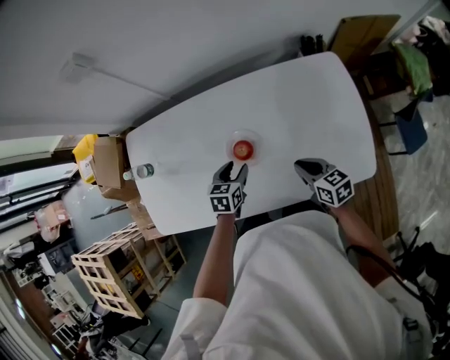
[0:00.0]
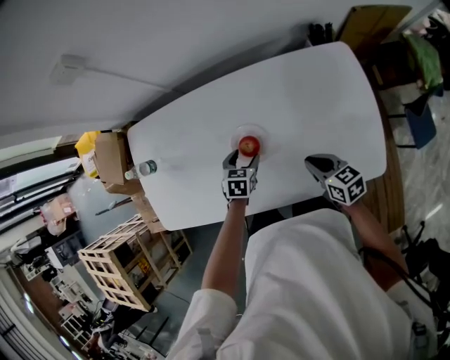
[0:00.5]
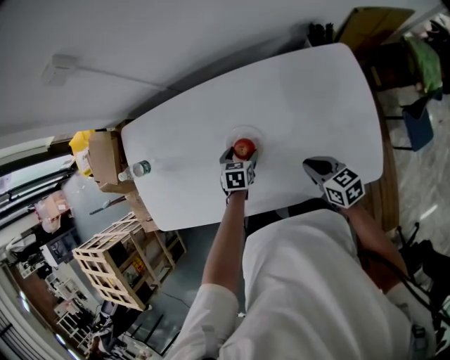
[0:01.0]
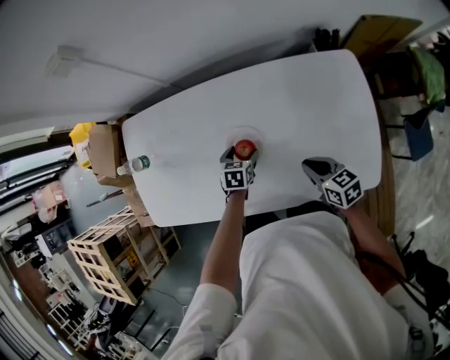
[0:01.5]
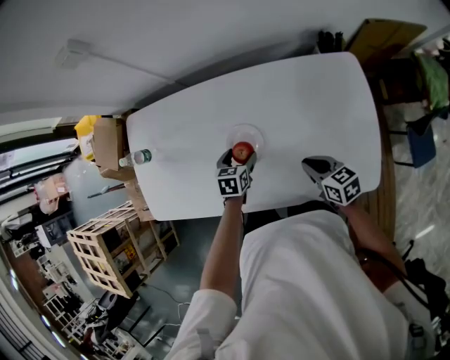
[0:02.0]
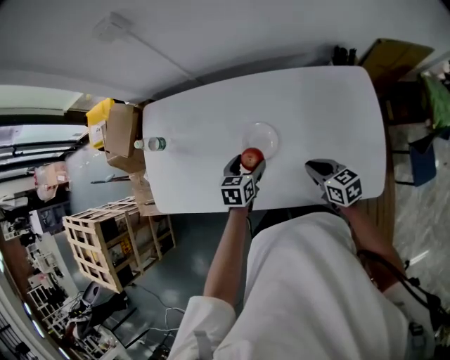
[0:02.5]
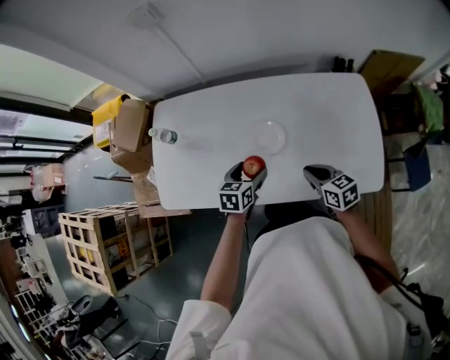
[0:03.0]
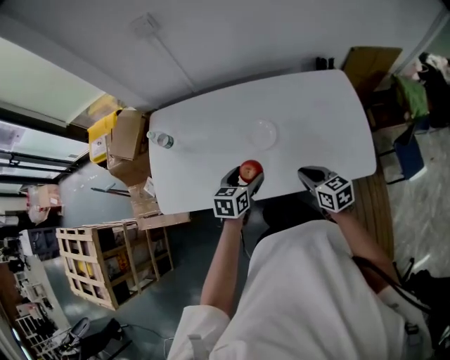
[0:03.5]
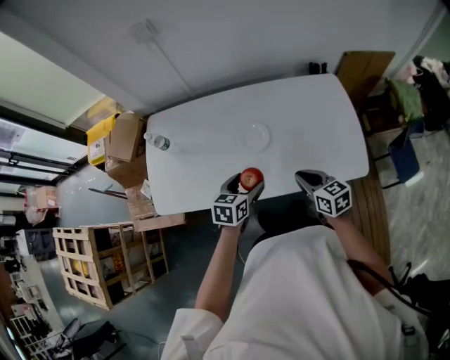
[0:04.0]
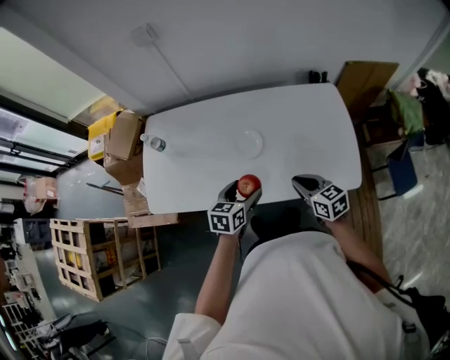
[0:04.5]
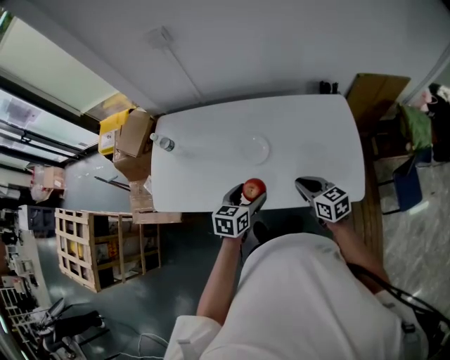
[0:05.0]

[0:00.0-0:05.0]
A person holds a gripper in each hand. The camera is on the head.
0:00.0 to 0:02.5: The left gripper reaches roughly 10 cm downward, then returns, and opens.
0:02.5 to 0:05.0: The left gripper is displaced backward and upward by some 20 cm; the right gripper is displaced upward and backward by approximately 10 cm.

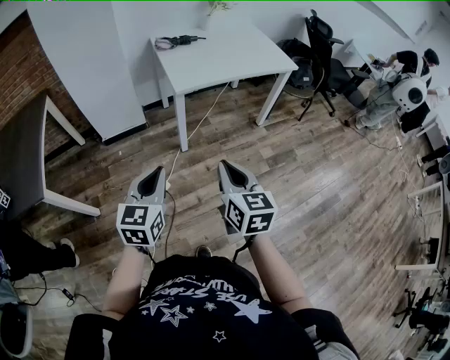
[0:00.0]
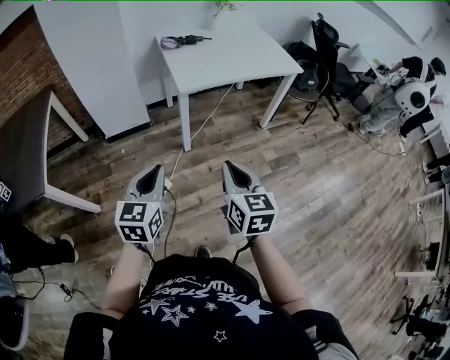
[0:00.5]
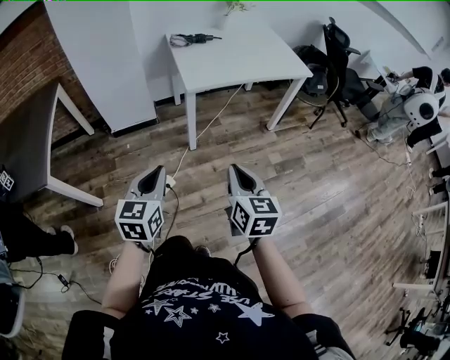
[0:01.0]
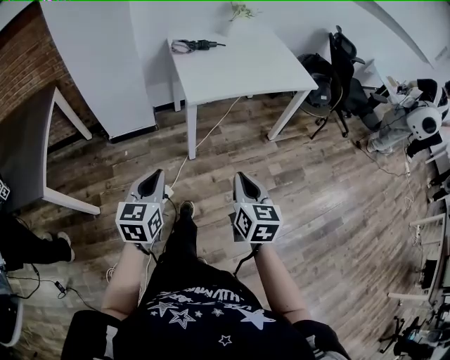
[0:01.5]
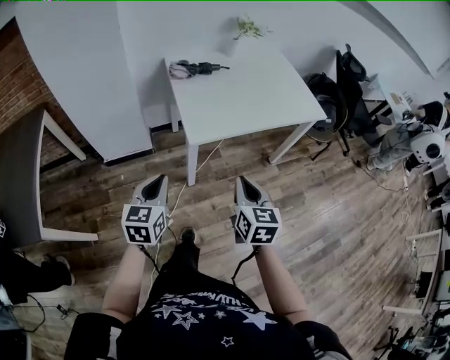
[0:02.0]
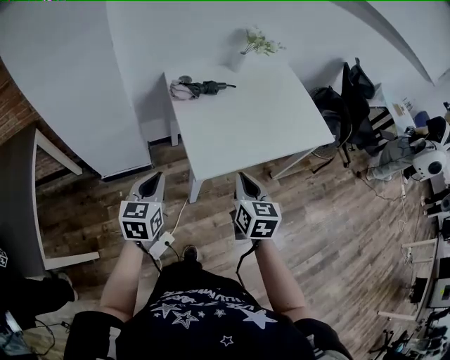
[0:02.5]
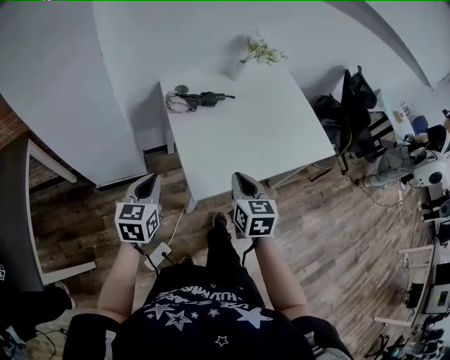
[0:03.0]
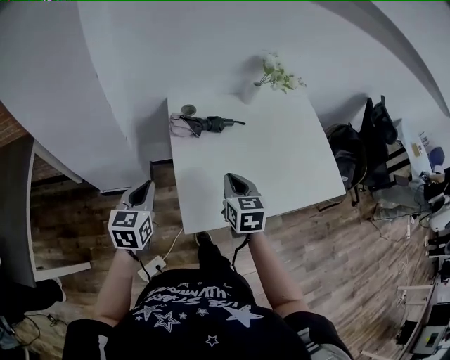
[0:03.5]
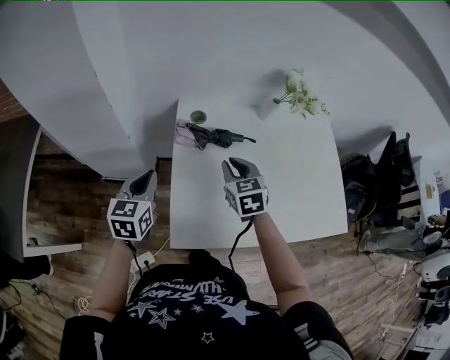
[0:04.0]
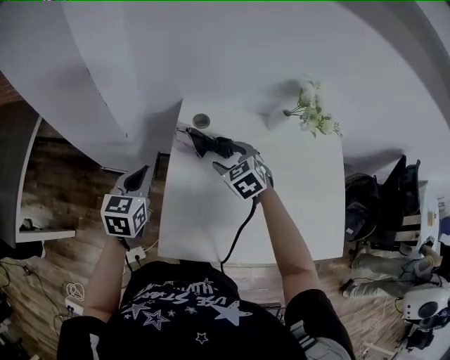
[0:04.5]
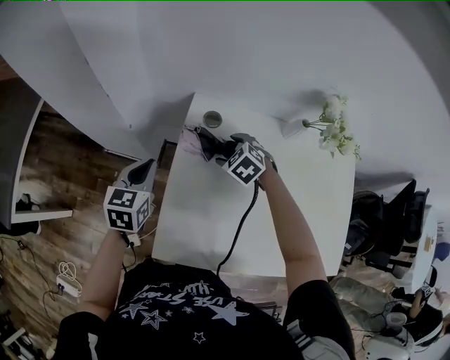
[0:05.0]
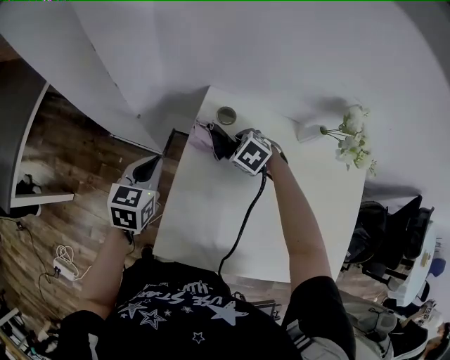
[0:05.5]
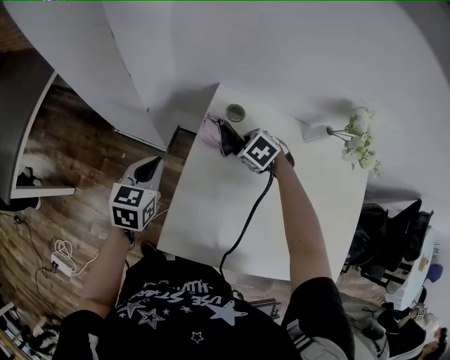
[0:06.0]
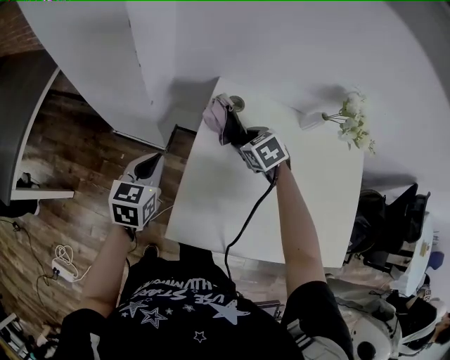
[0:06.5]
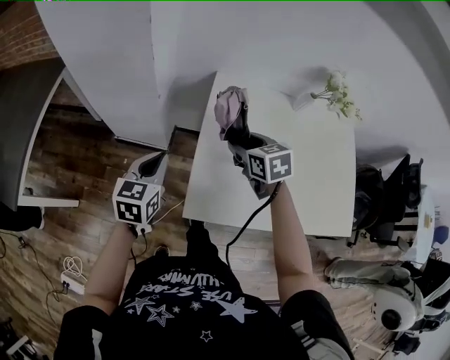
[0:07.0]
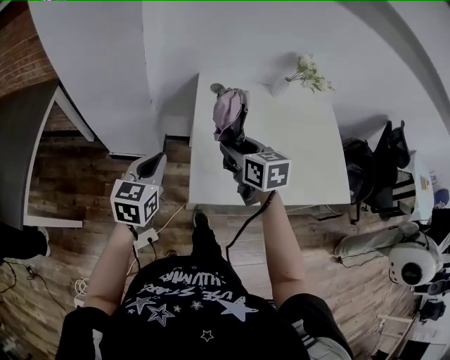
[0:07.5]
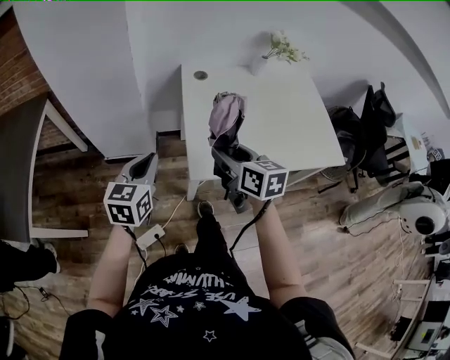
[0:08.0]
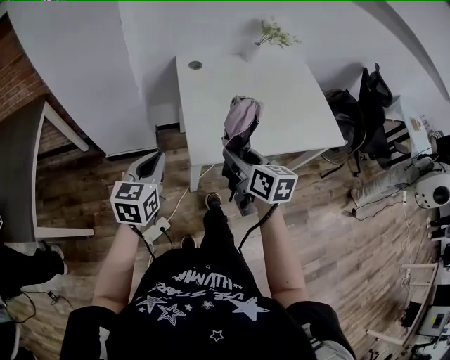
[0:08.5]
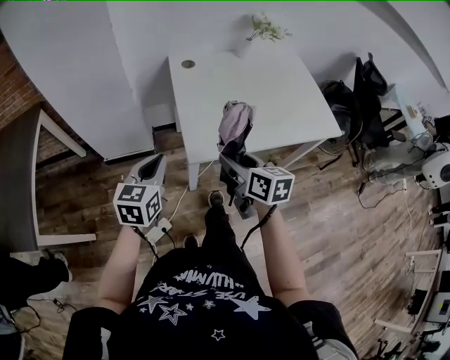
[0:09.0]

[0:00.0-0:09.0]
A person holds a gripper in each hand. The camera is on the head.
0:00.0 to 0:02.0: The grippers both shift forward by some 25 cm.
0:02.0 to 0:04.5: Both grippers are carried some 50 cm. The right gripper swivels about 70 degrees, and opens its fingers; the left gripper changes its angle by roughly 20 degrees.
0:04.5 to 0:07.0: The grippers both shift to the left and backward by about 10 cm. The right gripper goes downward and returns, roughly 10 cm each way, and turns by roughly 30 degrees.
0:07.0 to 0:09.0: The right gripper travels backward by about 30 cm, and rotates about 40 degrees, while the left gripper goes about 20 cm backward, and turns by approximately 20 degrees.

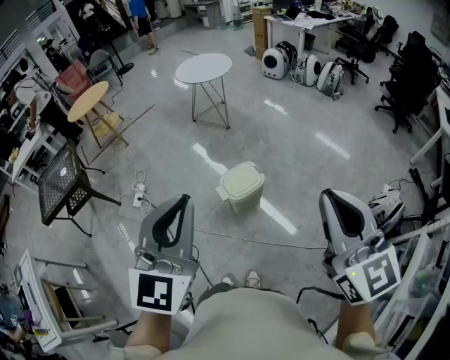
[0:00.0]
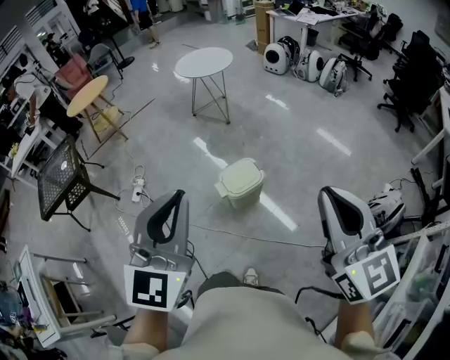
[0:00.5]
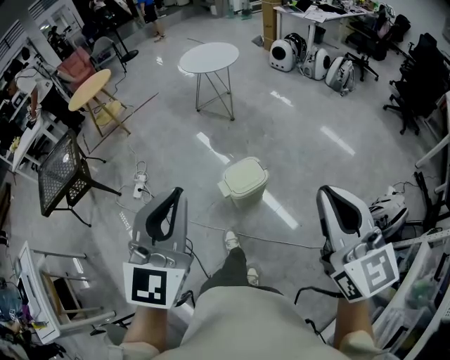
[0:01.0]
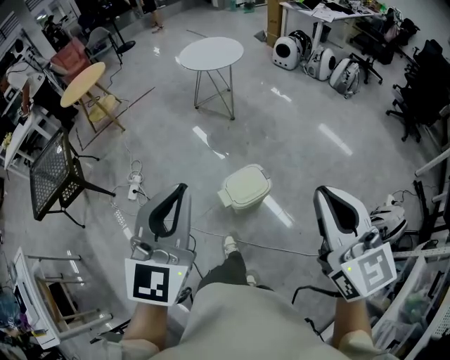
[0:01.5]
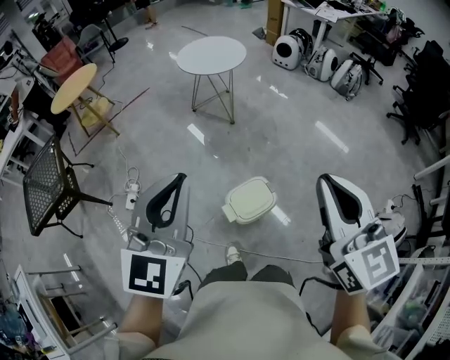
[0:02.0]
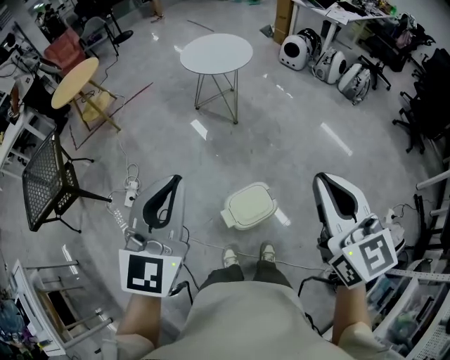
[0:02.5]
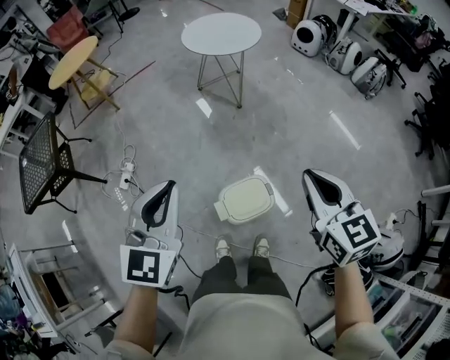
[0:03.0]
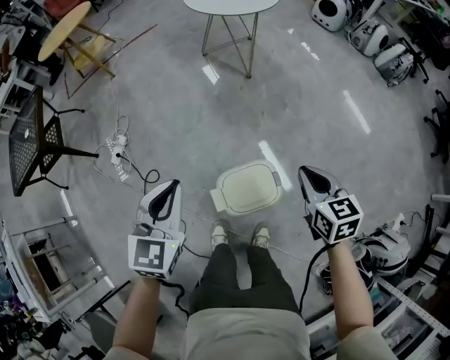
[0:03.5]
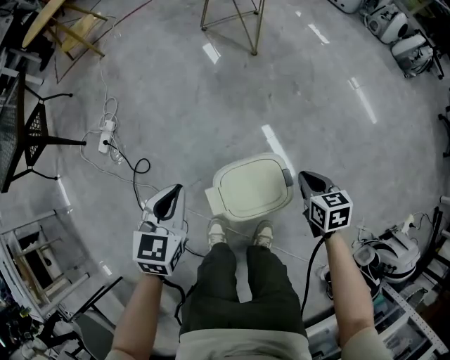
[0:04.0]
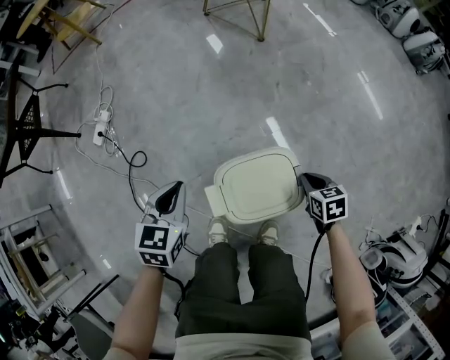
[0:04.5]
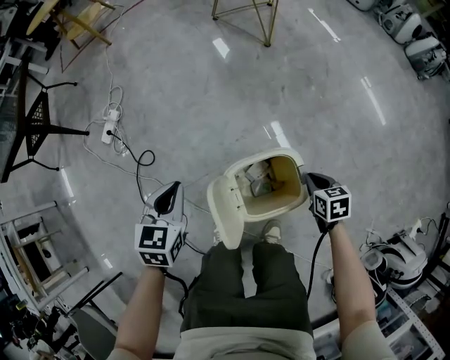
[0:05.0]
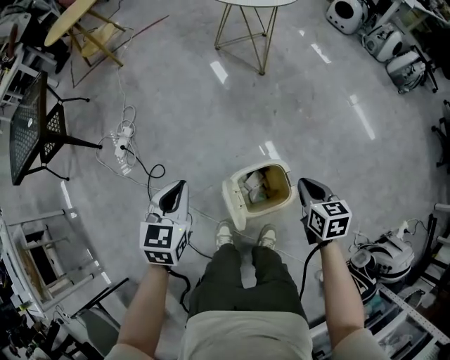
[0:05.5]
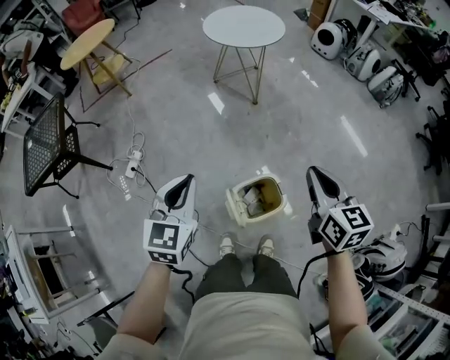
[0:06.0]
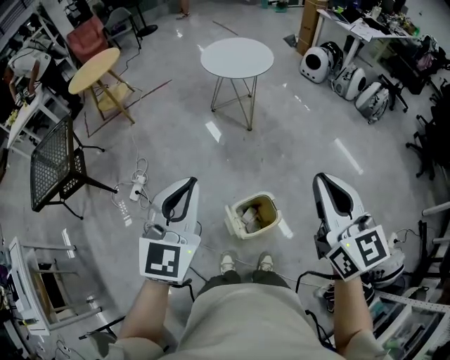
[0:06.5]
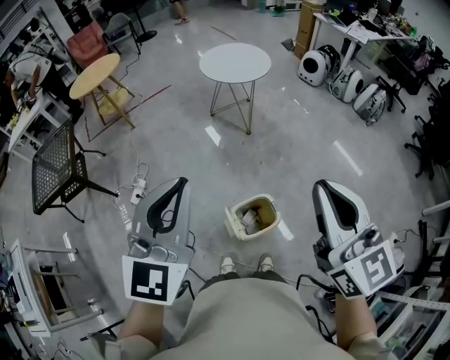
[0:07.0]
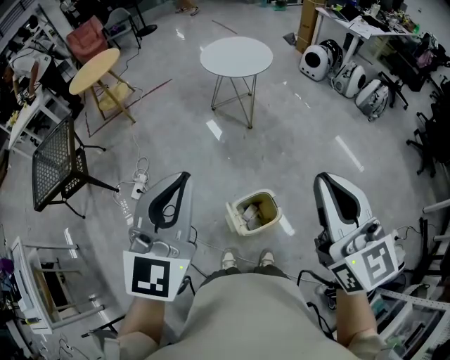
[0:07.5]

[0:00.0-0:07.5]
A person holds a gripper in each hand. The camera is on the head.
0:00.0 to 0:02.0: Both grippers travel together forward, some 30 cm.
0:02.0 to 0:04.0: Both grippers move downward, some 60 cm. The left gripper tips its fingers downward by about 30 degrees. Meanwhile the right gripper points its fingers approximately 40 degrees further downward.
0:04.0 to 0:05.5: Both grippers move upward, some 10 cm.
0:05.5 to 0:07.5: The grippers both shift upward by roughly 50 cm. The left gripper tilts its fingers approximately 30 degrees upward, while the right gripper angles its fingers upward, by approximately 40 degrees.

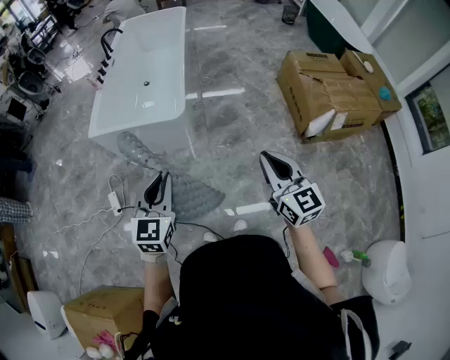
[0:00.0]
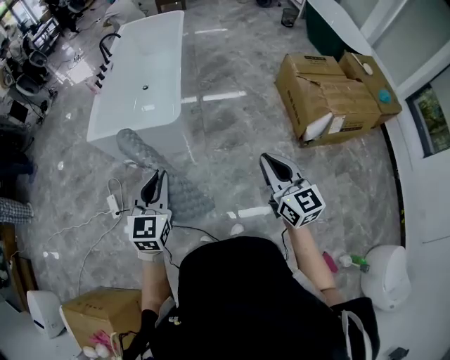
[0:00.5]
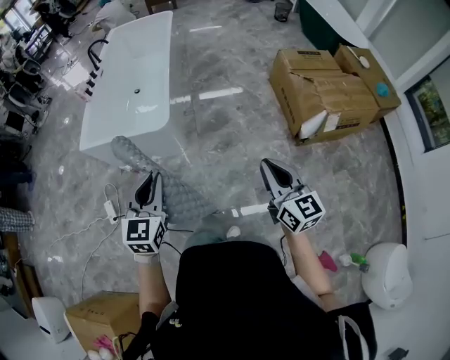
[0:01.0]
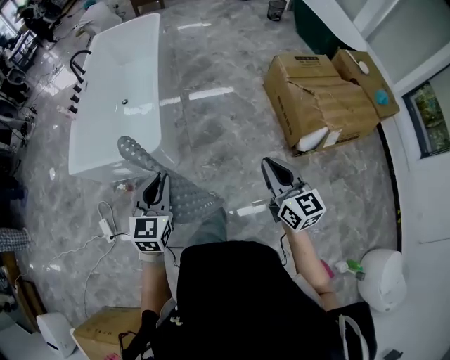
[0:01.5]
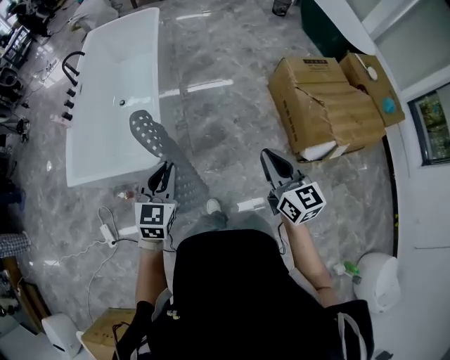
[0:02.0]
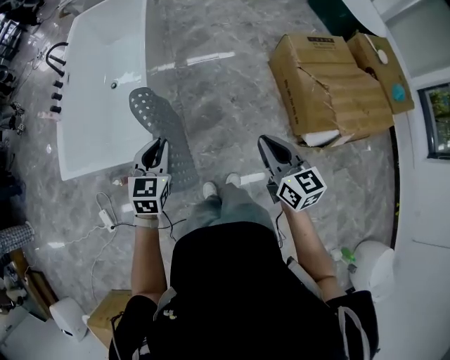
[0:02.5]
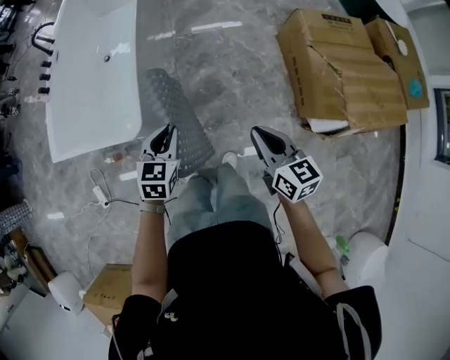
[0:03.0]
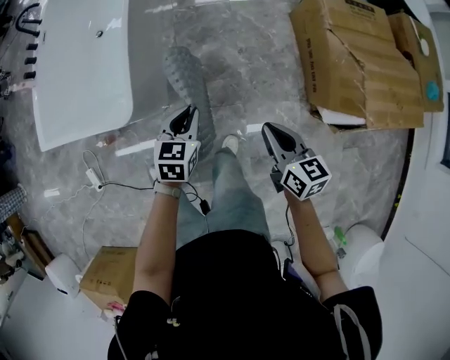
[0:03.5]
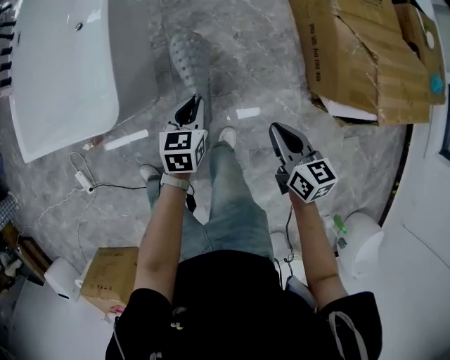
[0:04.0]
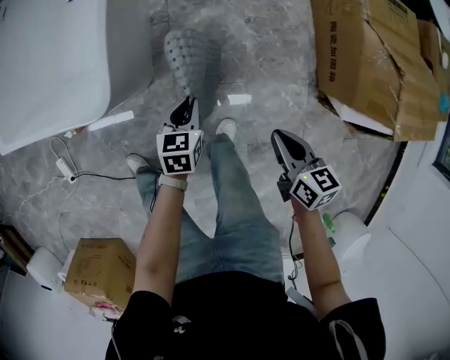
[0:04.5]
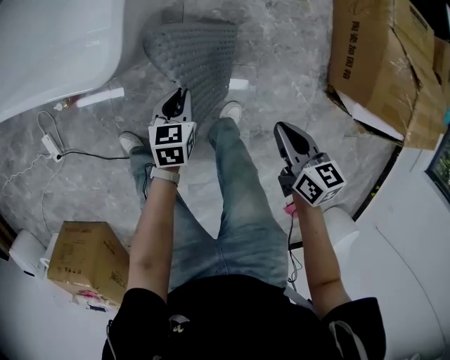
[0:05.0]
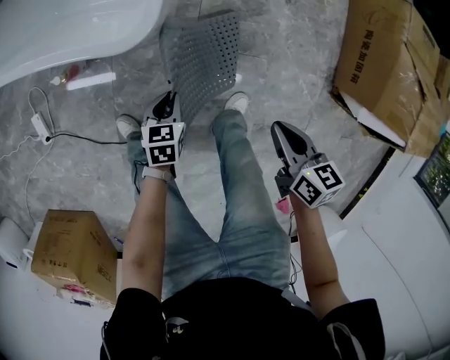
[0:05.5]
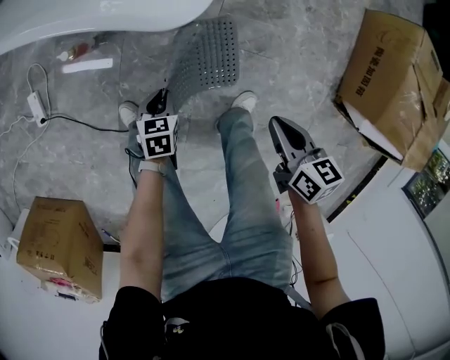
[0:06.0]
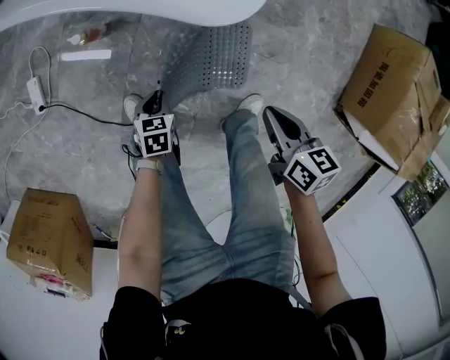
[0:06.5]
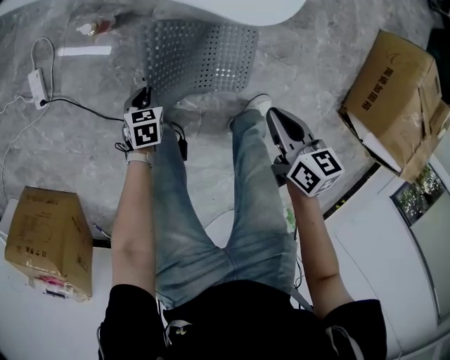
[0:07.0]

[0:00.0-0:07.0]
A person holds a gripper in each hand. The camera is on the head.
0:00.0 to 0:02.0: Both grippers move forward, approximately 35 cm.
0:02.0 to 0:03.5: The right gripper heads downward, covering some 25 cm, and turns by approximately 30 degrees, while the left gripper is displaced downward, to the right and forward by roughly 35 cm, and changes its angle by approximately 20 degrees.
0:03.5 to 0:05.0: Both grippers move downward and to the left, some 30 cm.
0:05.0 to 0:07.0: The left gripper moves to the left and downward, some 40 cm, and turns by about 20 degrees. The right gripper is displaced to the left by about 30 cm.
